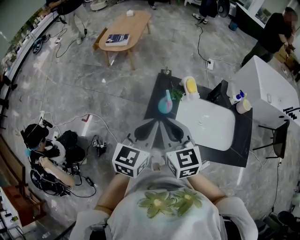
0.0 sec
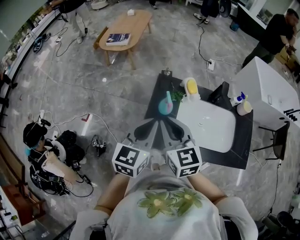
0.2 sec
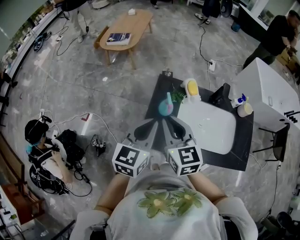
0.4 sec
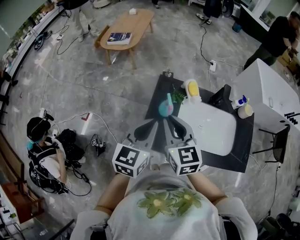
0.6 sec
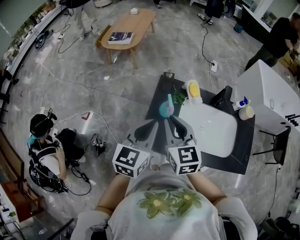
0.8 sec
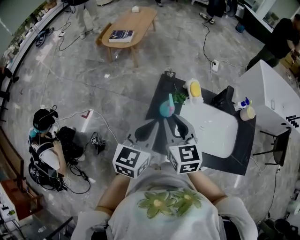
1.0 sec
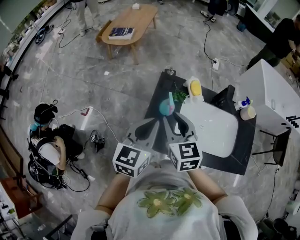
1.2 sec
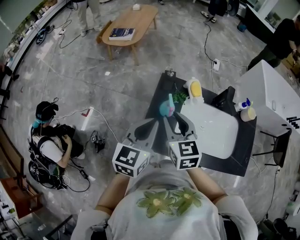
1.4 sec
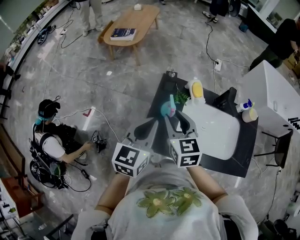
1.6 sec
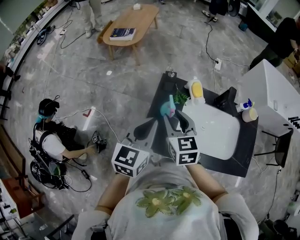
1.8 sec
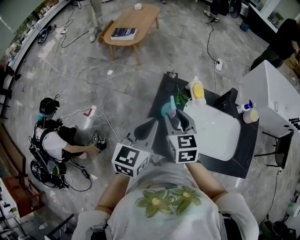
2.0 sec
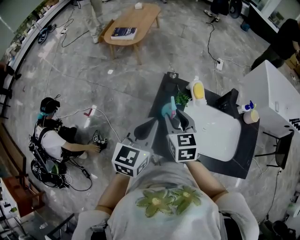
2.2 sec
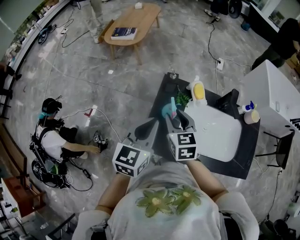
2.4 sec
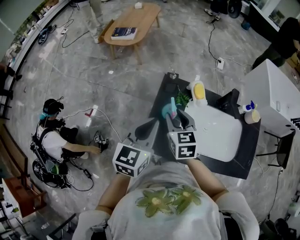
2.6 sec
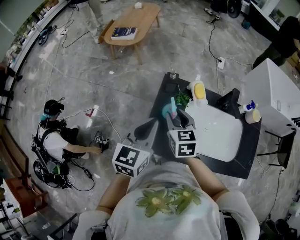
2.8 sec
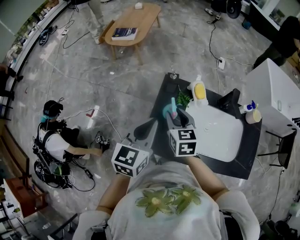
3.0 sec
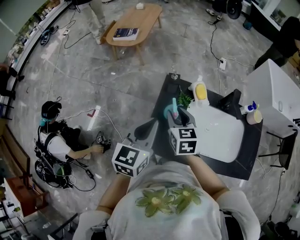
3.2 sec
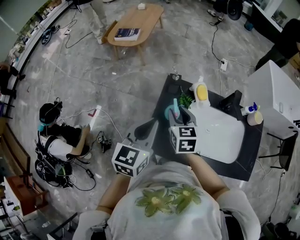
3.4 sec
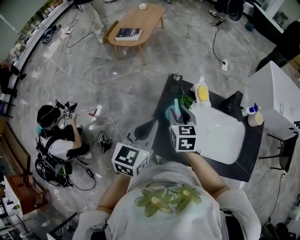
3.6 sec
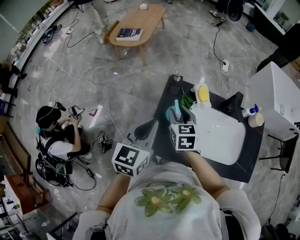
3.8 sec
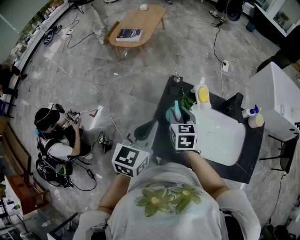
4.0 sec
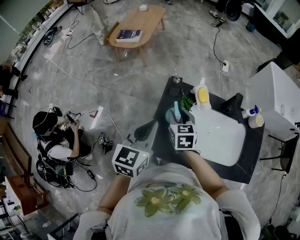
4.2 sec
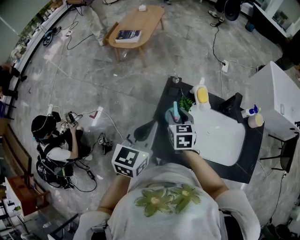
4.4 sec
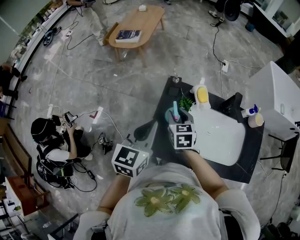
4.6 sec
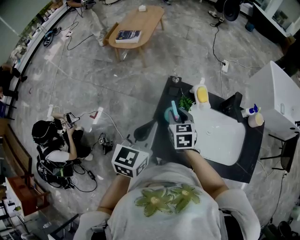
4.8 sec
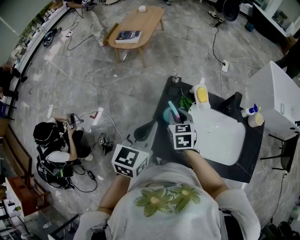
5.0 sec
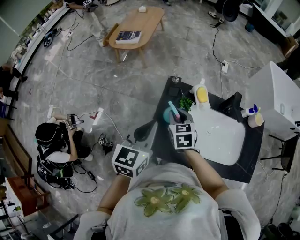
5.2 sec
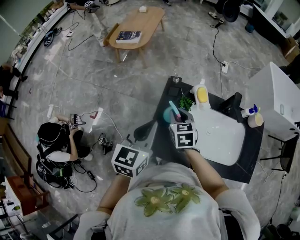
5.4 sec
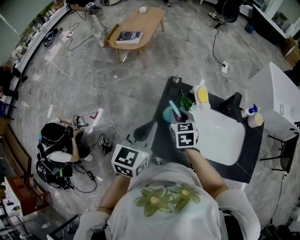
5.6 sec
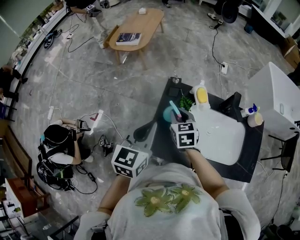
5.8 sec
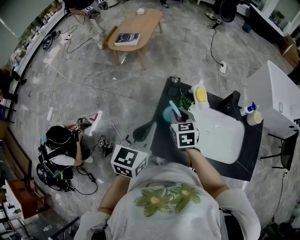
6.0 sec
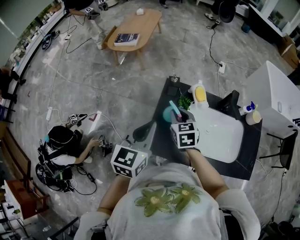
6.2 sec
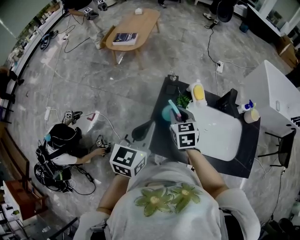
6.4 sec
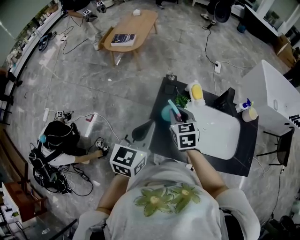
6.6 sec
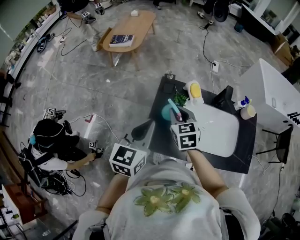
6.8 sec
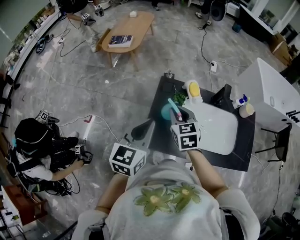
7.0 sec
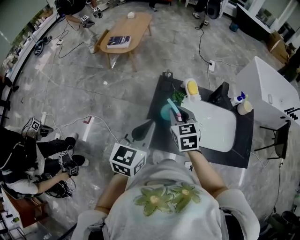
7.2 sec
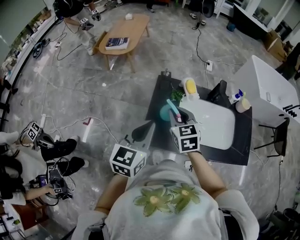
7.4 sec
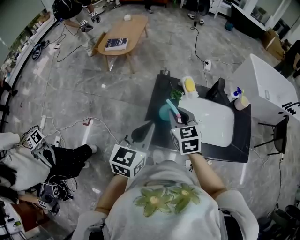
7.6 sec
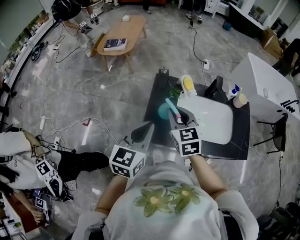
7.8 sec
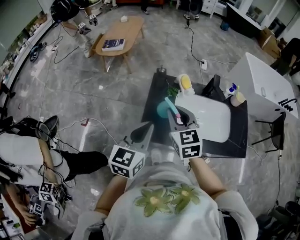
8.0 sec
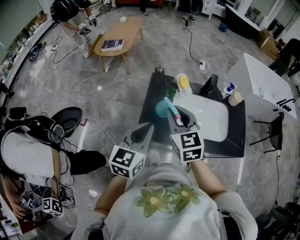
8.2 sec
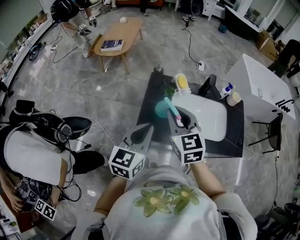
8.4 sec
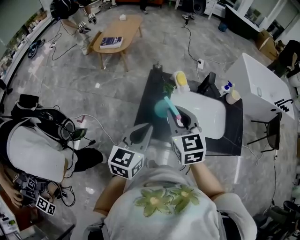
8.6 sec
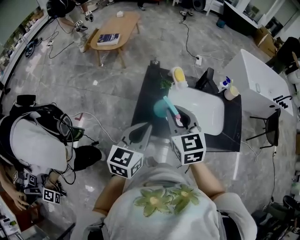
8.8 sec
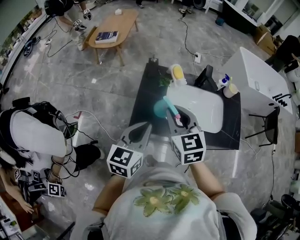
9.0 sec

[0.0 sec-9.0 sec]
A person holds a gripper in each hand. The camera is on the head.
0.0 sec to 1.6 sec: The right gripper is displaced forward and downward by some 10 cm, and opens up.
1.6 sec to 3.0 sec: The right gripper heads downward, covering about 5 cm.
3.0 sec to 4.4 sec: The right gripper moves about 5 cm.
4.4 sec to 6.0 sec: Both grippers stay put.
6.0 sec to 7.6 sec: The right gripper goes approximately 10 cm upward and backward; the left gripper heads backward, covering roughly 5 cm.
7.6 sec to 9.0 sec: The left gripper shifts roughly 5 cm backward. The right gripper heads backward and upward, covering some 10 cm.

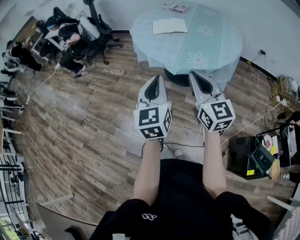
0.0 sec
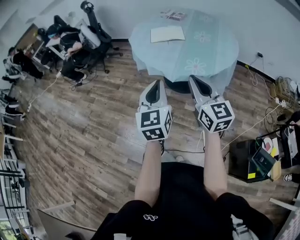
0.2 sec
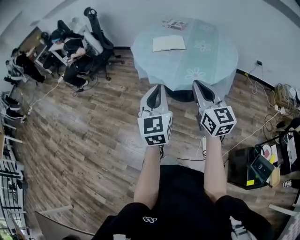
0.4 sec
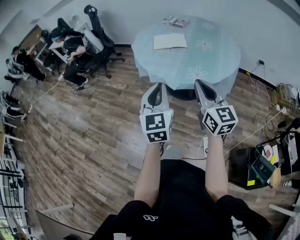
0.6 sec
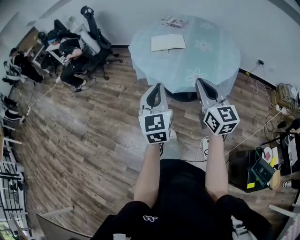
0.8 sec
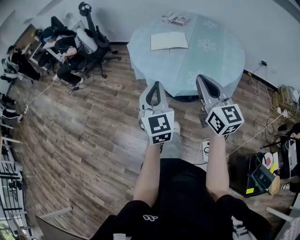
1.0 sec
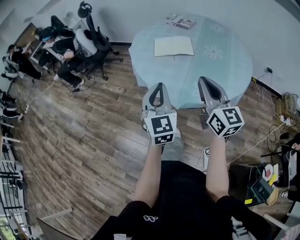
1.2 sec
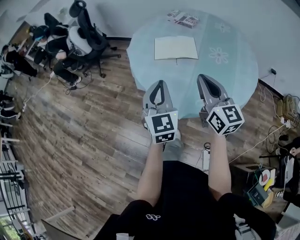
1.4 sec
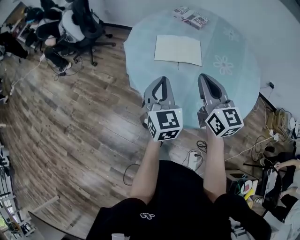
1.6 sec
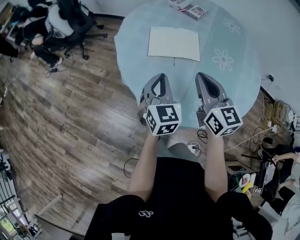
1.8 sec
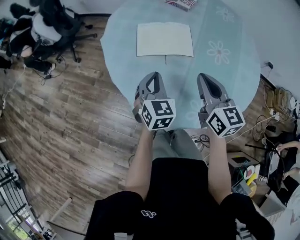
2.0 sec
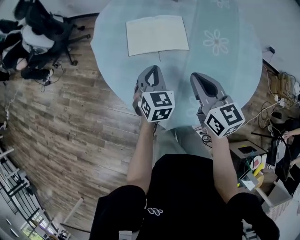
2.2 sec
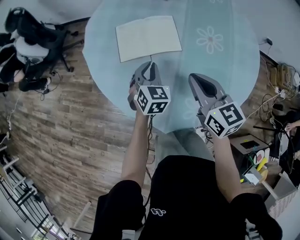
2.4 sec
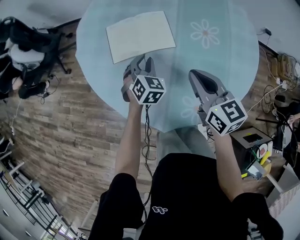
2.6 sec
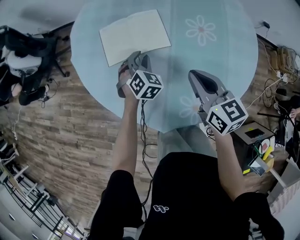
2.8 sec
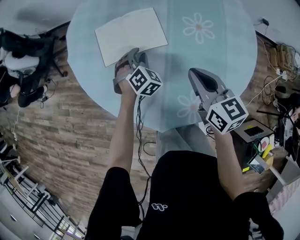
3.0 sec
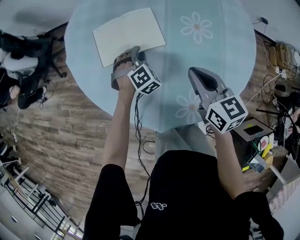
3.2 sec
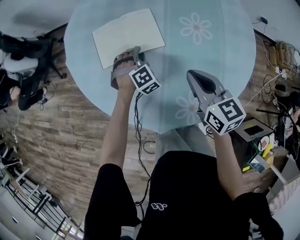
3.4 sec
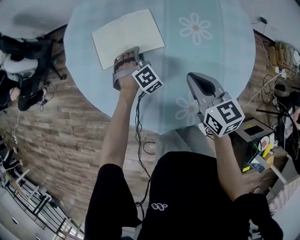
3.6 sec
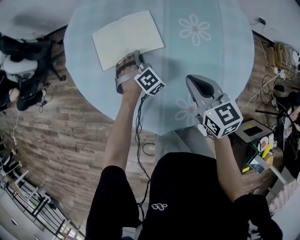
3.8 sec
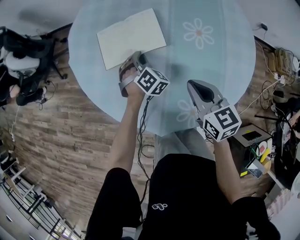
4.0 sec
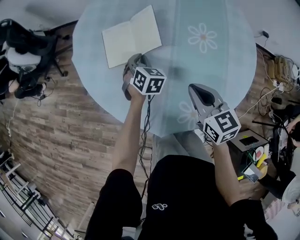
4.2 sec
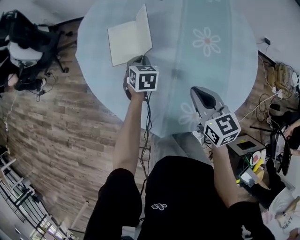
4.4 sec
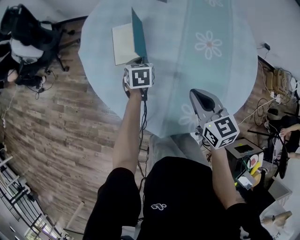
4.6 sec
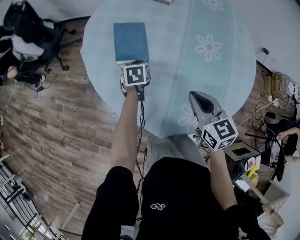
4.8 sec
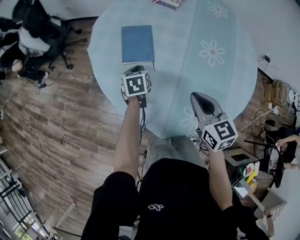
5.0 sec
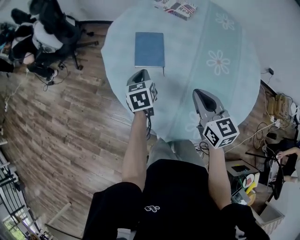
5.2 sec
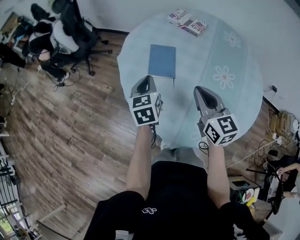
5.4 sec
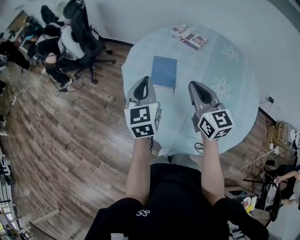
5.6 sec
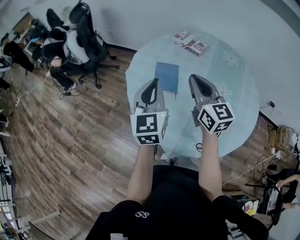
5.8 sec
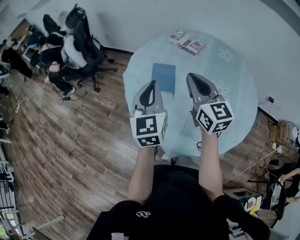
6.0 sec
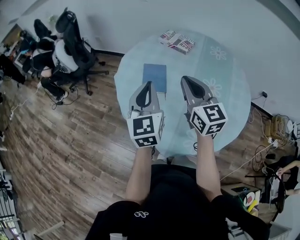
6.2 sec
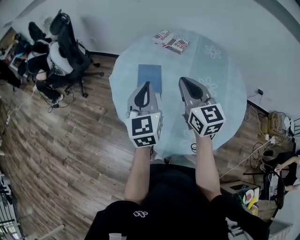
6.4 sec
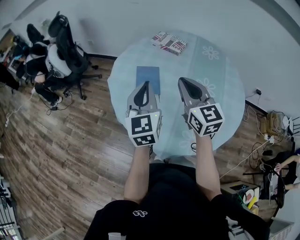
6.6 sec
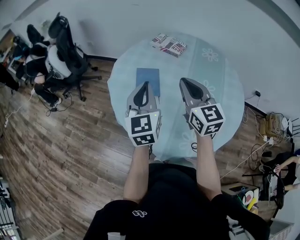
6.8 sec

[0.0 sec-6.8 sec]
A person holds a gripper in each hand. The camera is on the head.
0.0 sec to 1.4 sec: The two grippers go some 30 cm forward.
1.4 sec to 2.8 sec: The right gripper goes some 25 cm forward, downward and to the right, and rotates roughly 30 degrees. Meanwhile the left gripper shifts some 40 cm forward, downward and to the right, points its fingers about 40 degrees further downward, and opens up.
4.0 sec to 5.4 sec: The left gripper shifts some 25 cm upward and to the left, and twists approximately 70 degrees counterclockwise, seen from behind. Meanwhile the right gripper is displaced upward and to the left by approximately 15 cm.
5.4 sec to 6.8 sec: The left gripper goes approximately 15 cm upward, and swivels approximately 20 degrees, while the right gripper travels upward by about 10 cm.

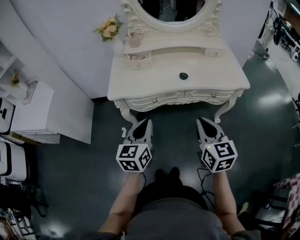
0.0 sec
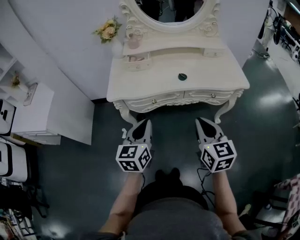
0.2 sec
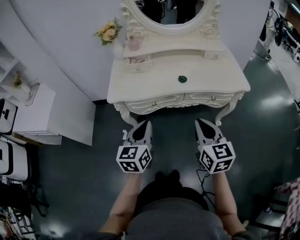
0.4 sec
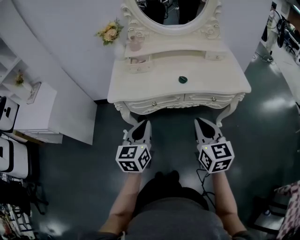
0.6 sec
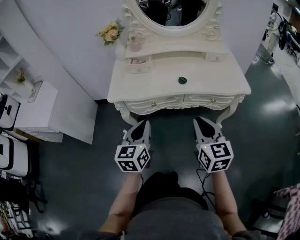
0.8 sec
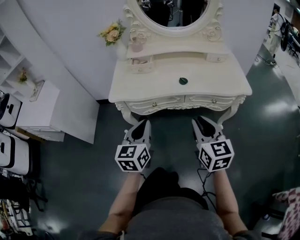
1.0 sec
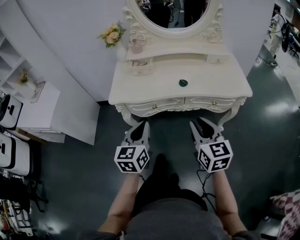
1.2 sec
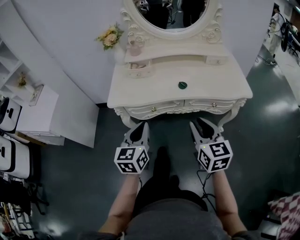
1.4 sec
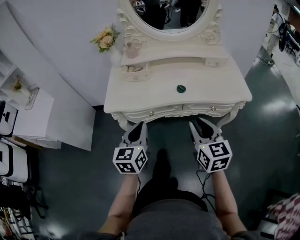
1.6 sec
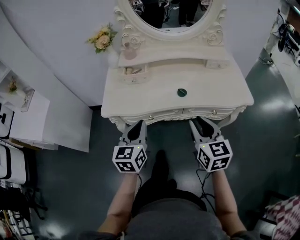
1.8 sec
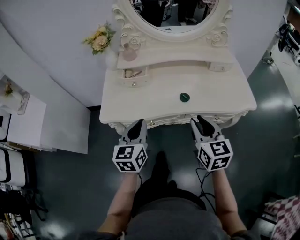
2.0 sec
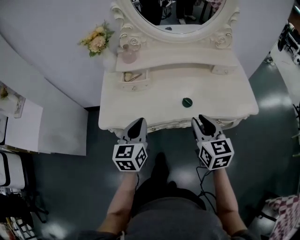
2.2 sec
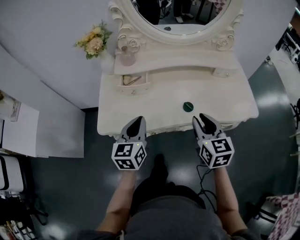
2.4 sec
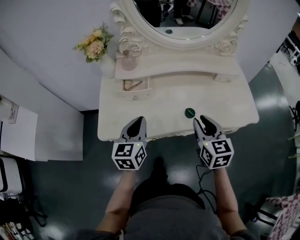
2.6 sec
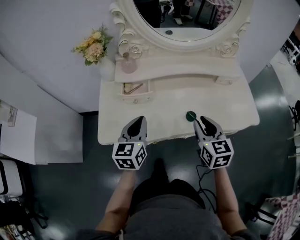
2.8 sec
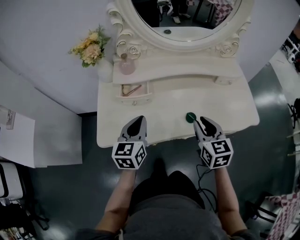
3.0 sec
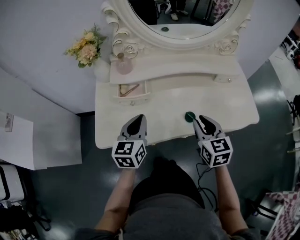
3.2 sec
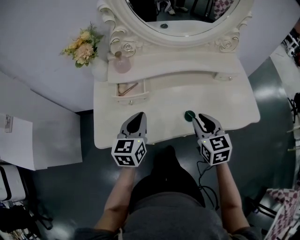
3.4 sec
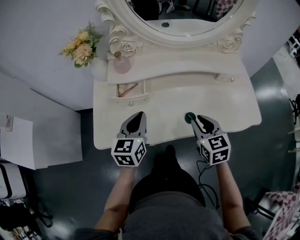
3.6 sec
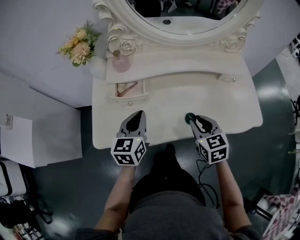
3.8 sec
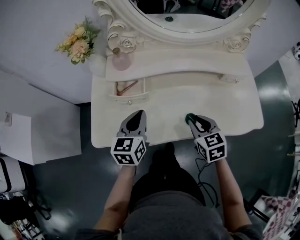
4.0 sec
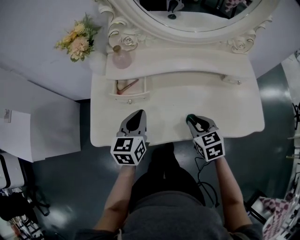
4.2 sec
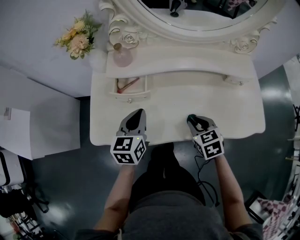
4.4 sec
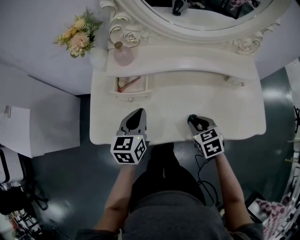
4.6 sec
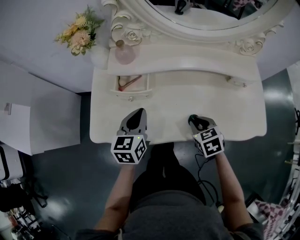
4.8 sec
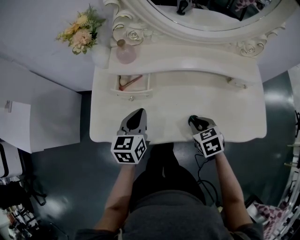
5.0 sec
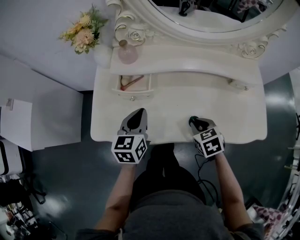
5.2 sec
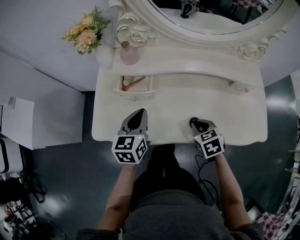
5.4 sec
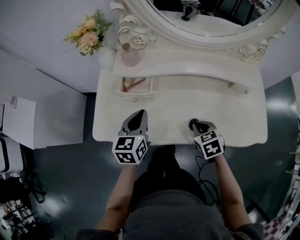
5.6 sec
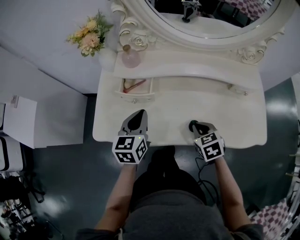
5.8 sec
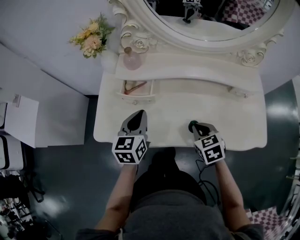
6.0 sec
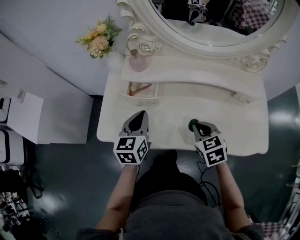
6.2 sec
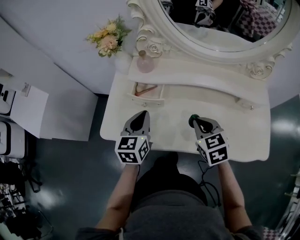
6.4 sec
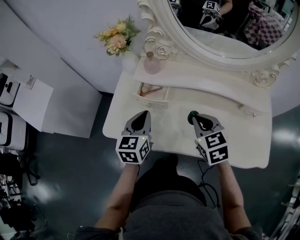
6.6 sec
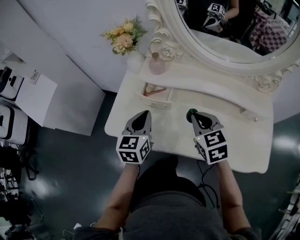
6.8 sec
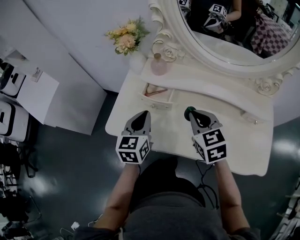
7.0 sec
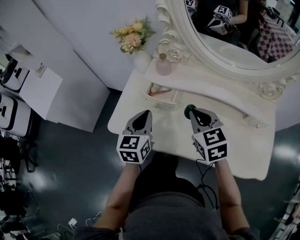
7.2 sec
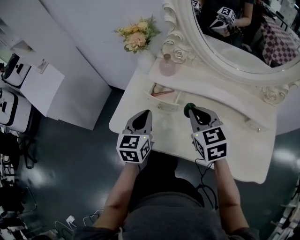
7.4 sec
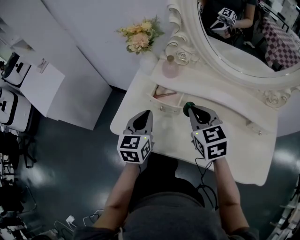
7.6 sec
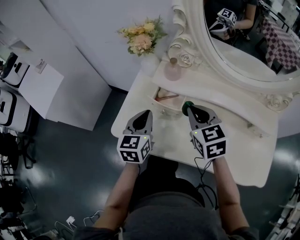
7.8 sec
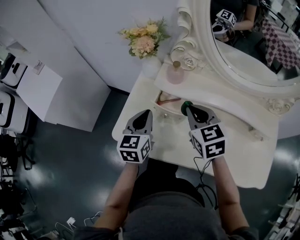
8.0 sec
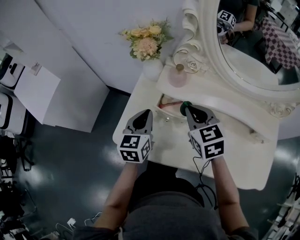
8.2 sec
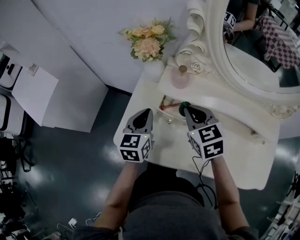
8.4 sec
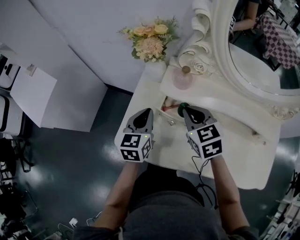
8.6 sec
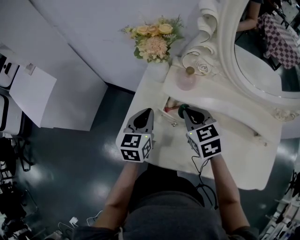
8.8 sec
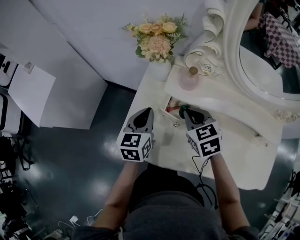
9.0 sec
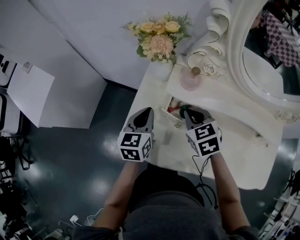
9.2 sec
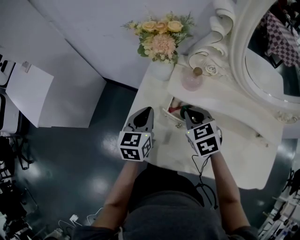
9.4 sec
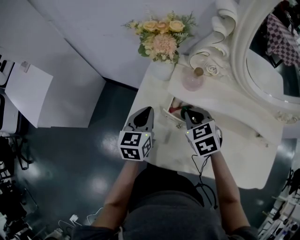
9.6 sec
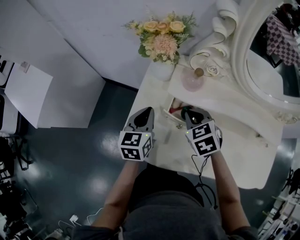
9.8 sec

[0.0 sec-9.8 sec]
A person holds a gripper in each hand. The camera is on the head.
0.0 sec to 1.4 sec: The right gripper shifts by about 5 cm, and opens its fingers.
1.4 sec to 2.8 sec: The grippers both shift forward by some 25 cm.
2.8 sec to 4.2 sec: The left gripper shifts roughly 5 cm forward. Meanwhile the right gripper goes roughly 10 cm downward and forward, and swivels some 30 degrees.
4.2 sec to 5.6 sec: The right gripper closes its fingers.
5.6 sec to 7.0 sec: The right gripper shifts roughly 20 cm upward, forward and to the left, and changes its angle by approximately 30 degrees, while the left gripper shifts by about 5 cm.
7.0 sec to 8.4 sec: Both grippers move forward and to the left, some 15 cm.
8.4 sec to 9.8 sec: The left gripper changes place by roughly 5 cm. Meanwhile the right gripper heads downward, covering some 10 cm.
